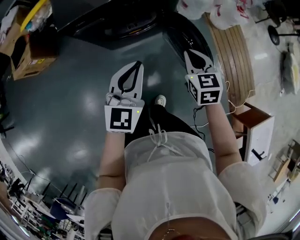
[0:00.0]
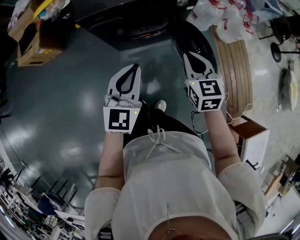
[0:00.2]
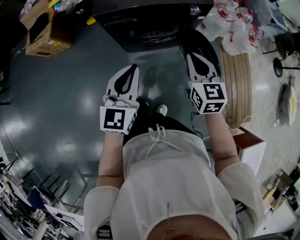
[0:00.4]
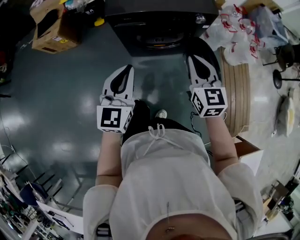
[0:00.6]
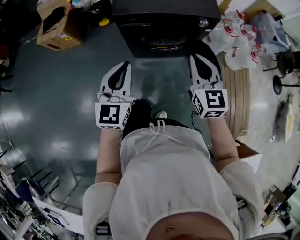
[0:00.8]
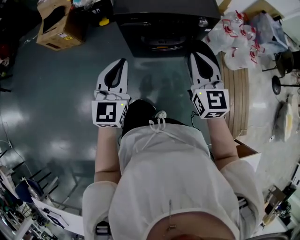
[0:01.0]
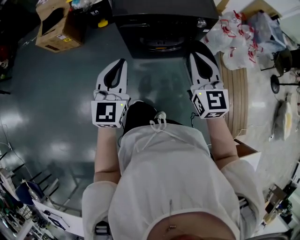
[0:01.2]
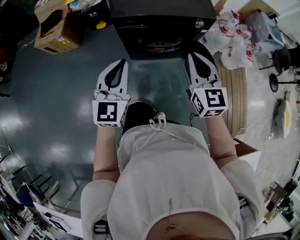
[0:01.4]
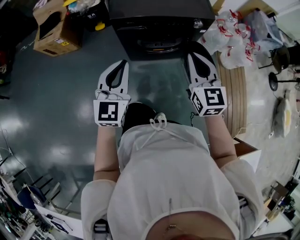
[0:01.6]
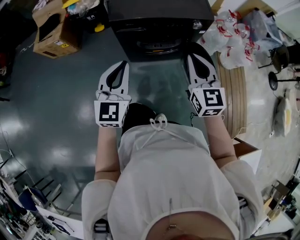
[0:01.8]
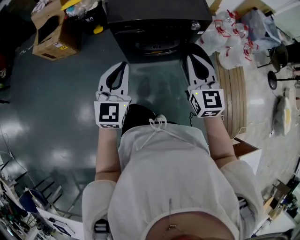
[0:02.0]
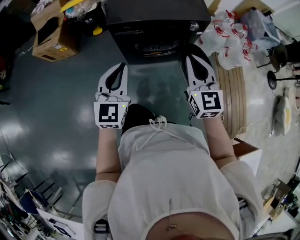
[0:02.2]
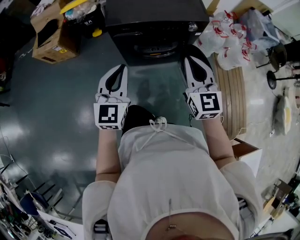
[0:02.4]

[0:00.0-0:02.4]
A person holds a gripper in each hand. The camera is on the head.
0:00.0 to 0:01.2: The left gripper is displaced to the left and upward by roughly 25 cm, and changes its angle by roughly 20 degrees, while the right gripper goes about 25 cm upward and to the left, and turns by some 30 degrees.
0:01.2 to 0:02.4: There are only small adjustments of the grippers.

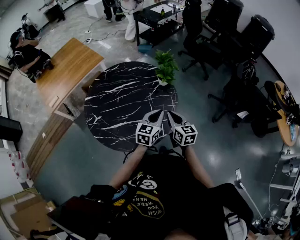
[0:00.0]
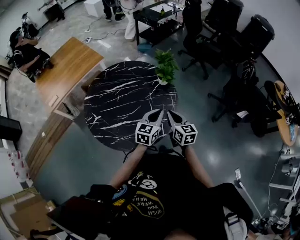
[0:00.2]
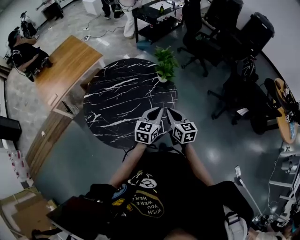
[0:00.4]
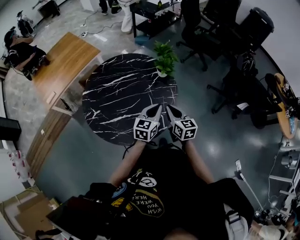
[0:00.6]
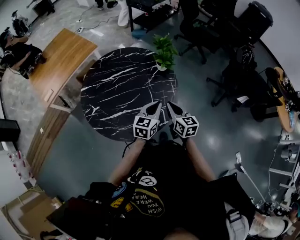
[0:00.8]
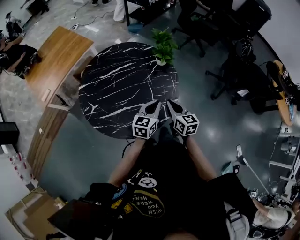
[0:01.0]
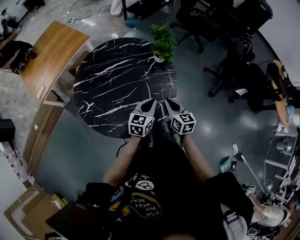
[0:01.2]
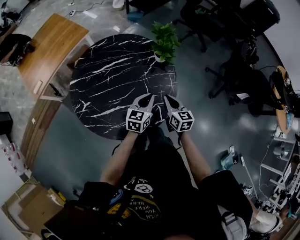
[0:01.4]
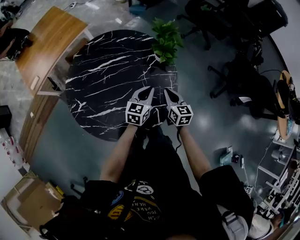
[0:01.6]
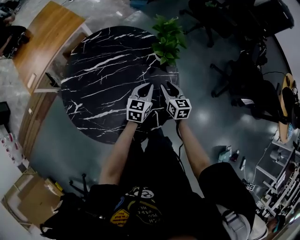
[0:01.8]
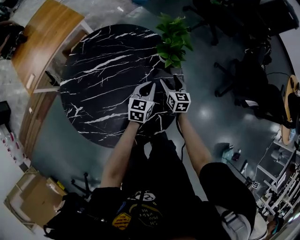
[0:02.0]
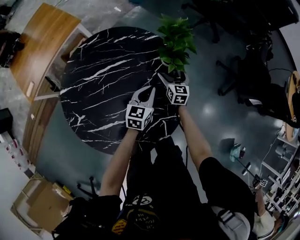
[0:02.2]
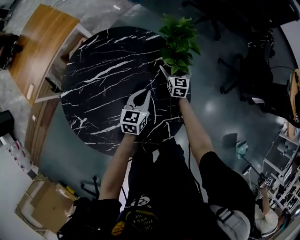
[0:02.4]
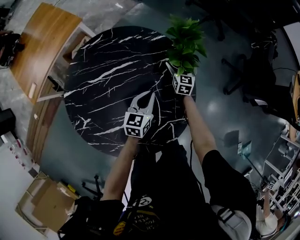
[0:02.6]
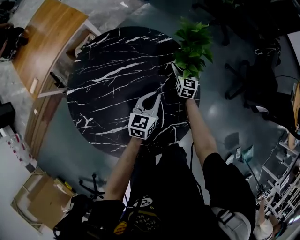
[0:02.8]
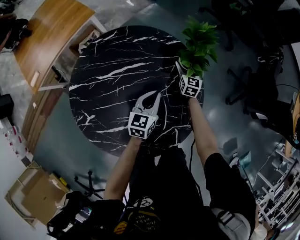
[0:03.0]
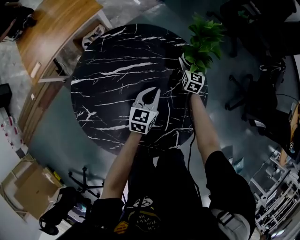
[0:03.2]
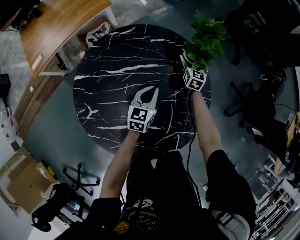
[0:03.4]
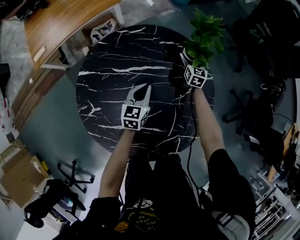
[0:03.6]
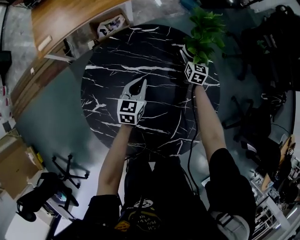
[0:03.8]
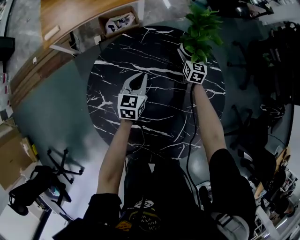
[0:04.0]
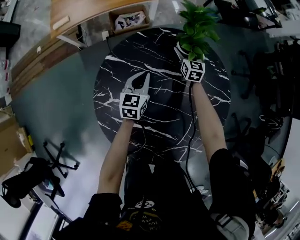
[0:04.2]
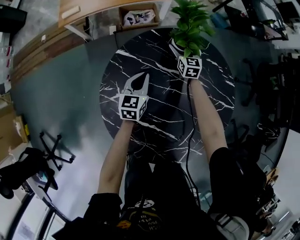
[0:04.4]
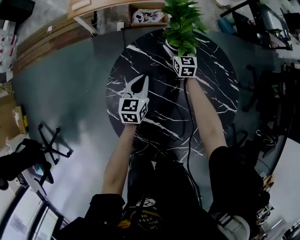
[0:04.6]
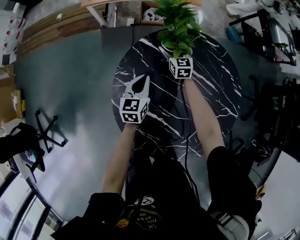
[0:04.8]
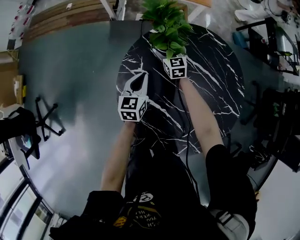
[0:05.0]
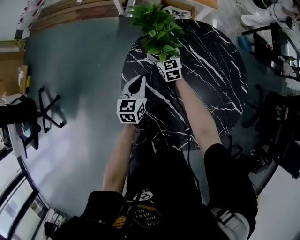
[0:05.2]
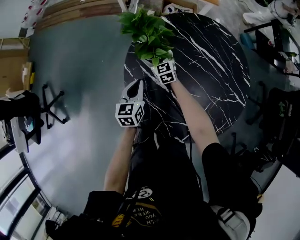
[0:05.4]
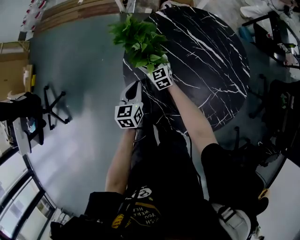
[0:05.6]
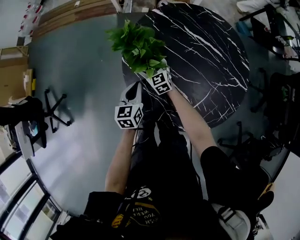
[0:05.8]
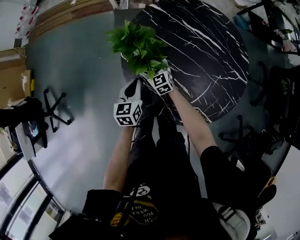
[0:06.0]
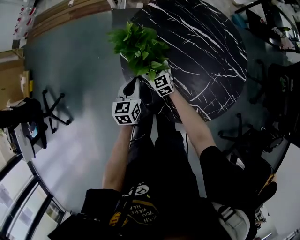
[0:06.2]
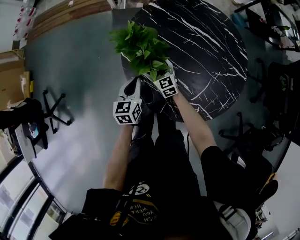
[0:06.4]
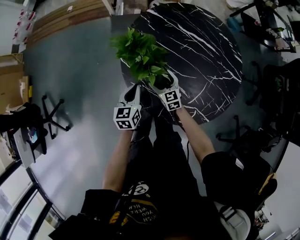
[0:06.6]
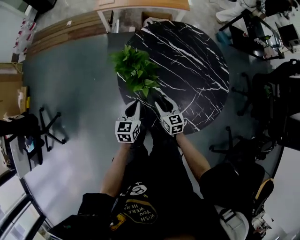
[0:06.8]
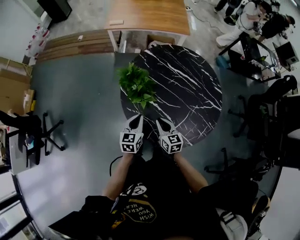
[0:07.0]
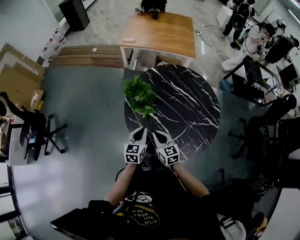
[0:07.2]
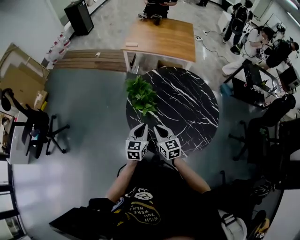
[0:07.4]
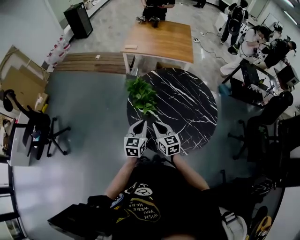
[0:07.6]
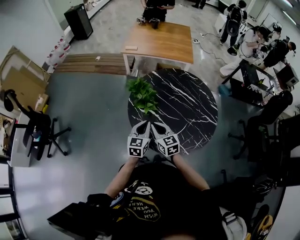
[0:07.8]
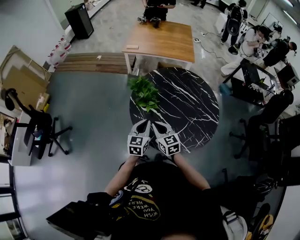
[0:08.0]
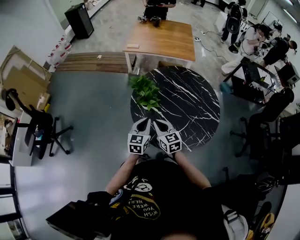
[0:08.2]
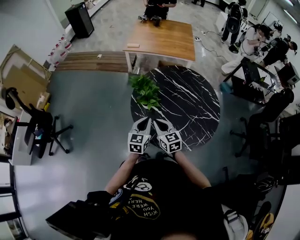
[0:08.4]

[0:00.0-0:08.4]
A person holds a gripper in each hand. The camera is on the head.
0:00.0 to 0:01.4: Both grippers travel together downward, roughly 10 cm.
0:01.4 to 0:02.8: The left gripper goes roughly 20 cm forward, downward and to the left. The right gripper goes some 35 cm forward and downward, changes its angle by about 20 degrees, and opens its fingers.
0:02.8 to 0:04.2: The left gripper ends up about 35 cm from where it was, and swivels roughly 30 degrees. The right gripper ends up approximately 40 cm from where it was, and changes its angle by approximately 40 degrees.
0:04.2 to 0:05.6: The right gripper shifts by about 50 cm, and rotates about 50 degrees, while the left gripper changes place by roughly 35 cm, and swivels approximately 40 degrees.
0:05.6 to 0:07.0: The left gripper is displaced backward and upward by some 15 cm. Meanwhile the right gripper is displaced backward and upward by approximately 30 cm, turns by roughly 30 degrees, and closes.
0:07.0 to 0:08.4: The right gripper goes about 15 cm upward. Meanwhile the left gripper heads upward and backward, covering about 15 cm.

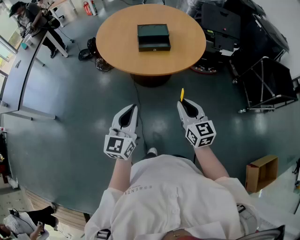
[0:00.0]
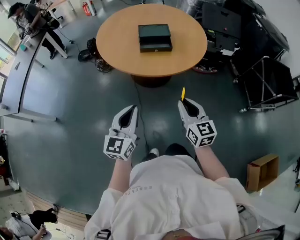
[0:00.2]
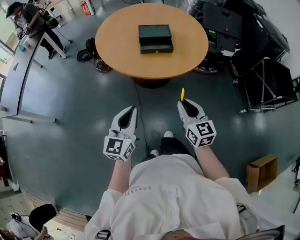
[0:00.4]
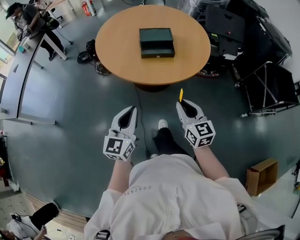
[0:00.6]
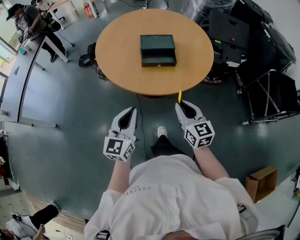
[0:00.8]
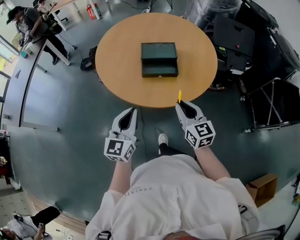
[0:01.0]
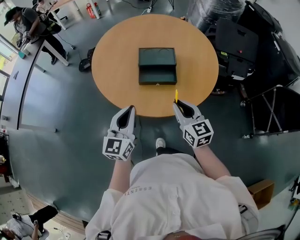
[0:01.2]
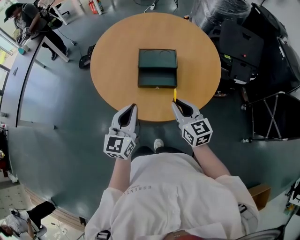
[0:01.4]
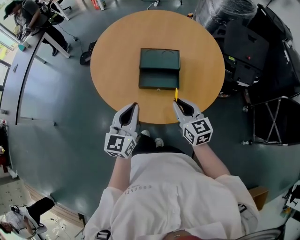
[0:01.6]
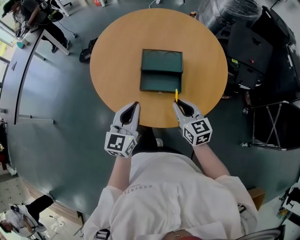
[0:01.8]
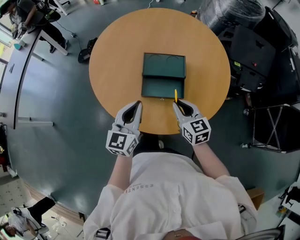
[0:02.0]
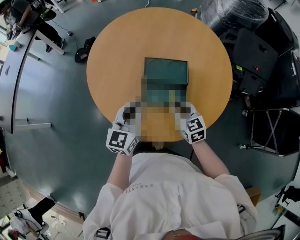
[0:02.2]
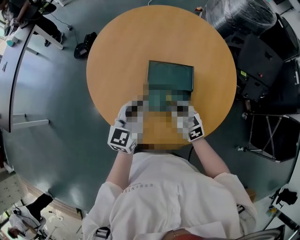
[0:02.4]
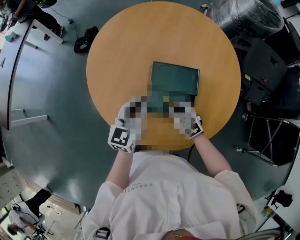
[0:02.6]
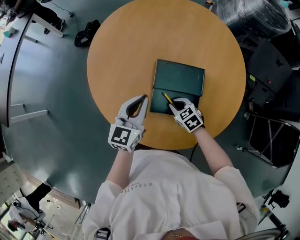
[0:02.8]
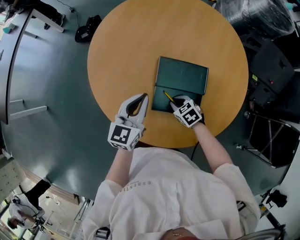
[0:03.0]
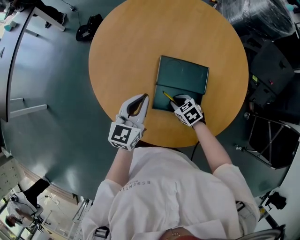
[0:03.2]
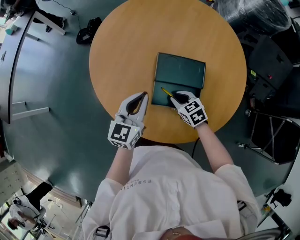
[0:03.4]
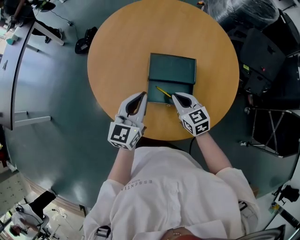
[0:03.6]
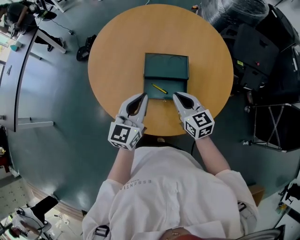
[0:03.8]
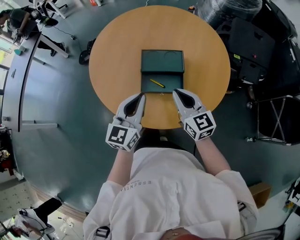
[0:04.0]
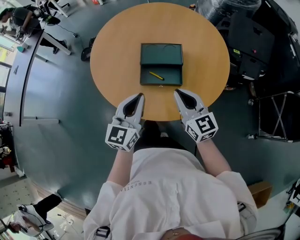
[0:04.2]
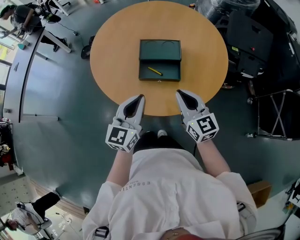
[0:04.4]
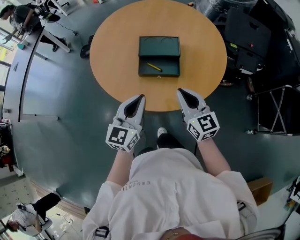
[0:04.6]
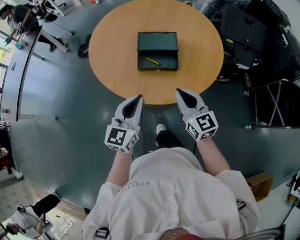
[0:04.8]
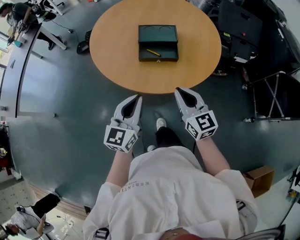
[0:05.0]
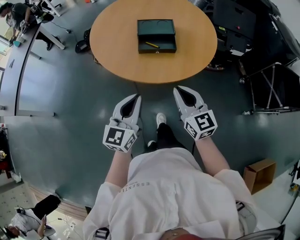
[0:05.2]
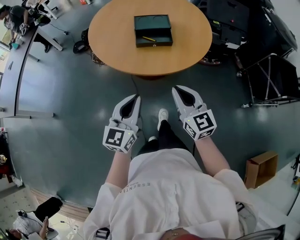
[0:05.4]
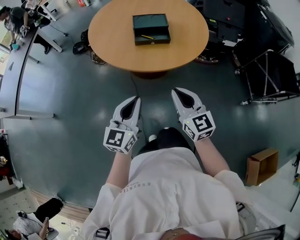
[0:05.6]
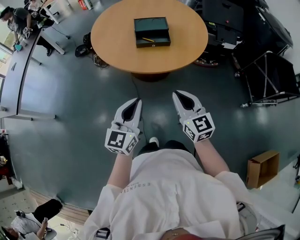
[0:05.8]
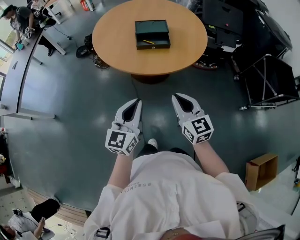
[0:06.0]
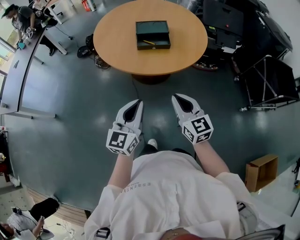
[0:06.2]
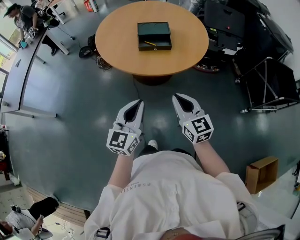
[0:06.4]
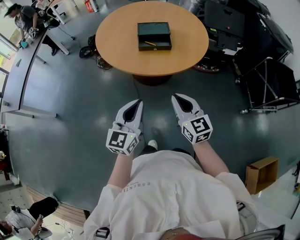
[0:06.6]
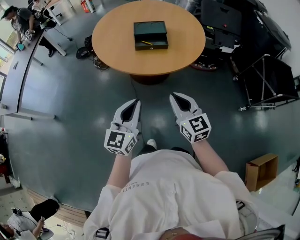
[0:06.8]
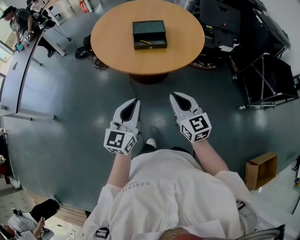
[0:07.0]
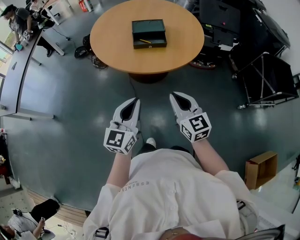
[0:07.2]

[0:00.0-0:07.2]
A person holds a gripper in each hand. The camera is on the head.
0:00.0 to 0:01.4: Both grippers travel together forward, about 30 cm.
0:01.4 to 0:02.8: The left gripper heads forward, covering about 25 cm; the right gripper moves downward and forward, about 30 cm, and points its fingers about 40 degrees further downward.
0:02.8 to 0:04.4: The left gripper shifts roughly 20 cm backward, while the right gripper moves upward and backward, some 30 cm, and tips its fingers upward by roughly 50 degrees.
0:04.4 to 0:05.8: The grippers both shift backward by approximately 30 cm.
0:05.8 to 0:07.2: The grippers make only small movements.

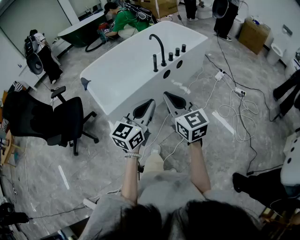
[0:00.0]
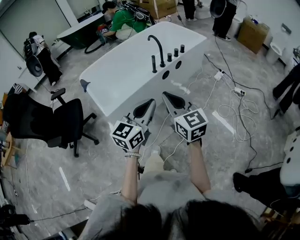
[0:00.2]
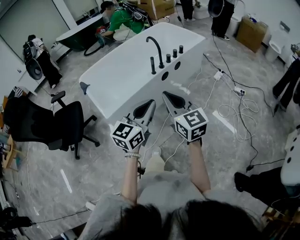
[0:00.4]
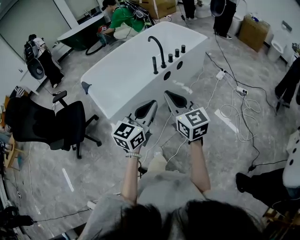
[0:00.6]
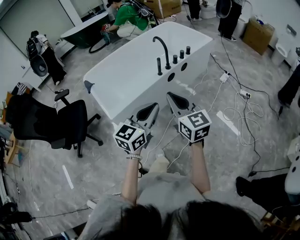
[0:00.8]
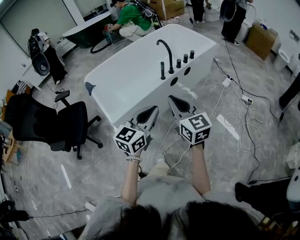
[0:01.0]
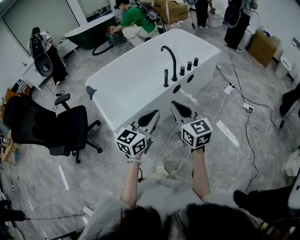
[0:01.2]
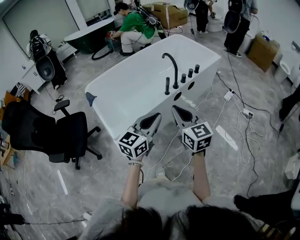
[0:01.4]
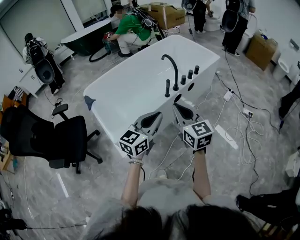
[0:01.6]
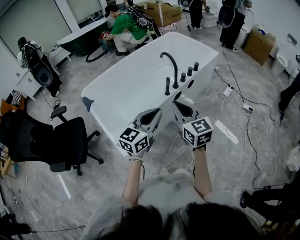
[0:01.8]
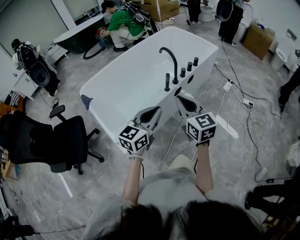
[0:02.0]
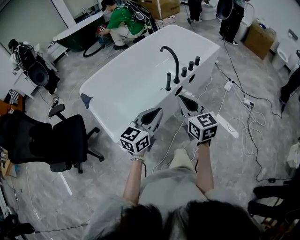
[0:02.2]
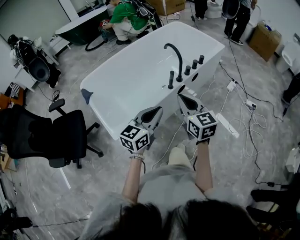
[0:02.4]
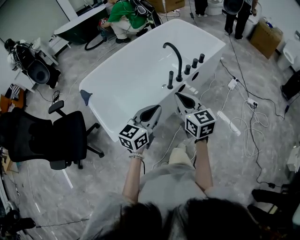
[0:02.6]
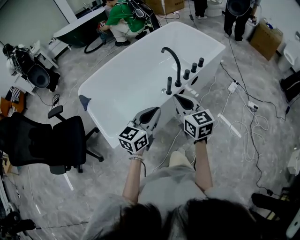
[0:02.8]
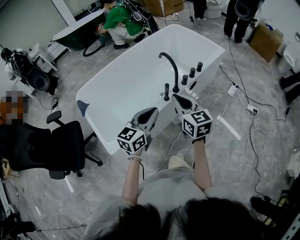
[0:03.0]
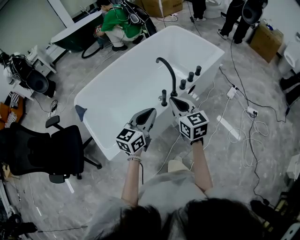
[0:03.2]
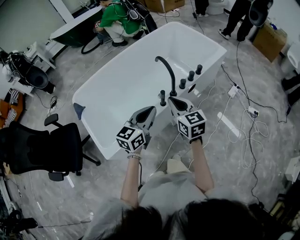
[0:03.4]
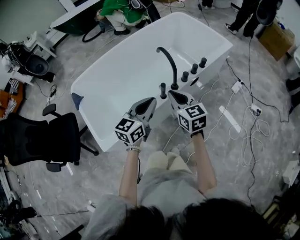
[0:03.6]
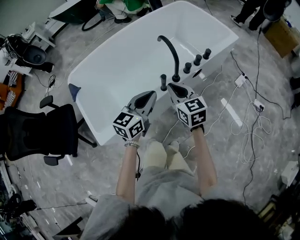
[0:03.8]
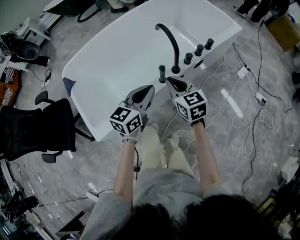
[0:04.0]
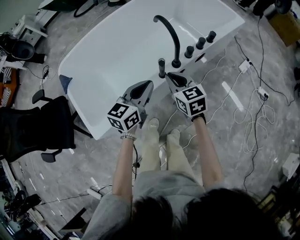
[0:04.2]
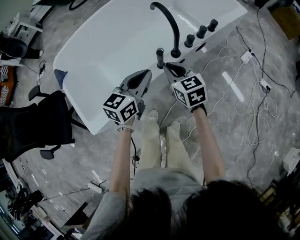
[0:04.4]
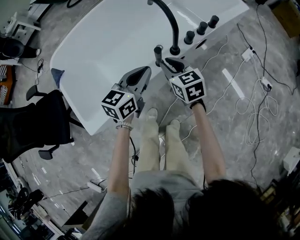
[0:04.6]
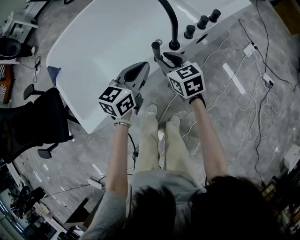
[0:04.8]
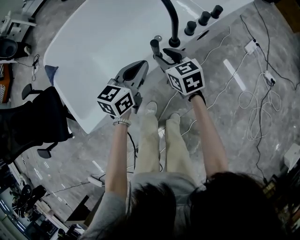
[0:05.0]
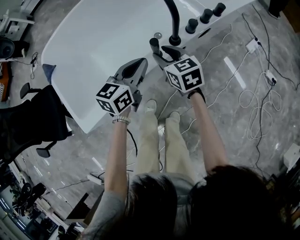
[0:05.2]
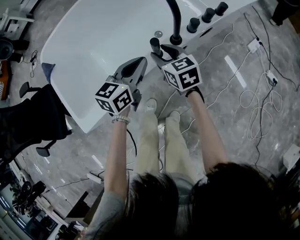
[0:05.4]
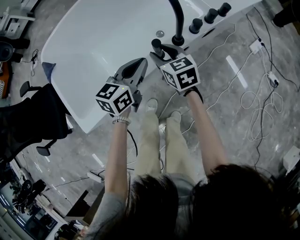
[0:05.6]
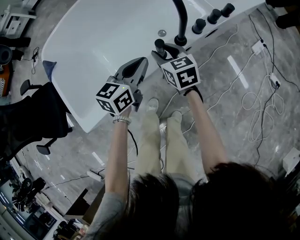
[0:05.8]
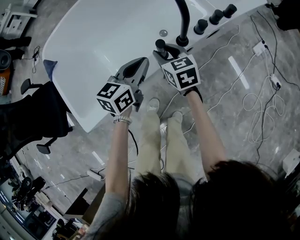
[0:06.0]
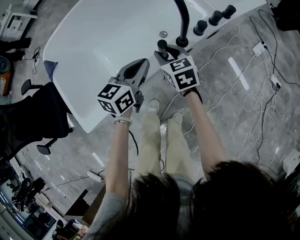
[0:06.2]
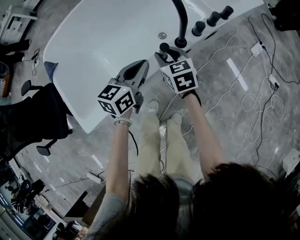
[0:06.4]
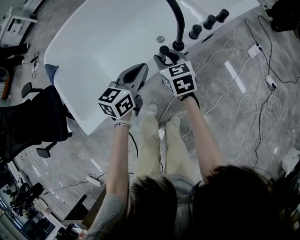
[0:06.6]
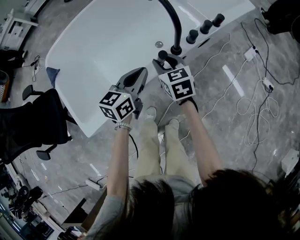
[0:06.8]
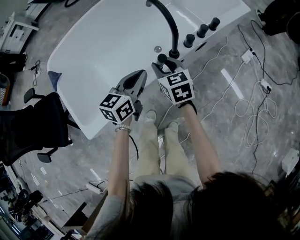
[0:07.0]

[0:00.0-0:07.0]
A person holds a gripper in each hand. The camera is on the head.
0:00.0 to 0:01.4: Both grippers travel together forward, approximately 15 cm.
0:01.4 to 0:02.8: Both grippers move forward, some 15 cm.
0:02.8 to 0:04.2: The right gripper moves downward and forward, about 25 cm, while the left gripper heads forward and downward, covering approximately 25 cm.
0:04.2 to 0:05.6: Both grippers travel together downward and forward, approximately 15 cm. The right gripper opens.
0:05.6 to 0:07.0: The right gripper shifts about 5 cm upward.
